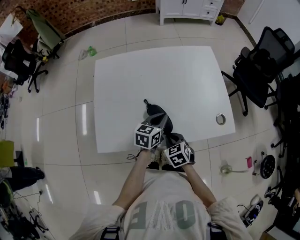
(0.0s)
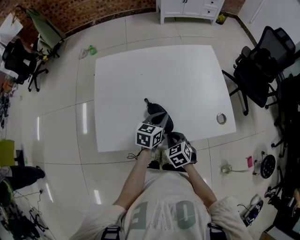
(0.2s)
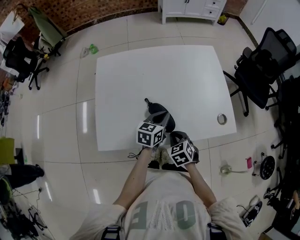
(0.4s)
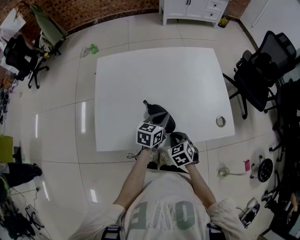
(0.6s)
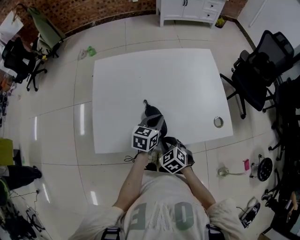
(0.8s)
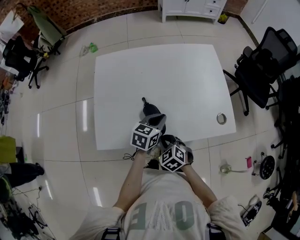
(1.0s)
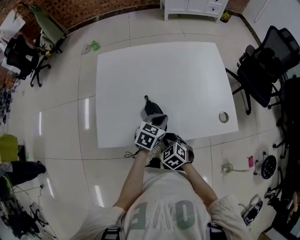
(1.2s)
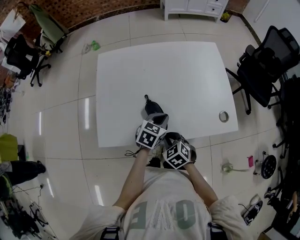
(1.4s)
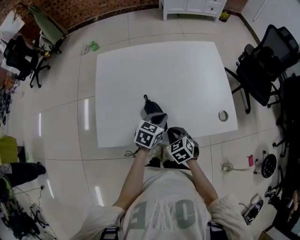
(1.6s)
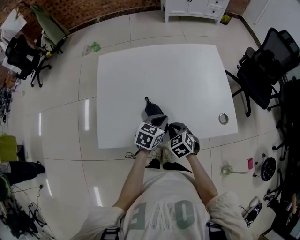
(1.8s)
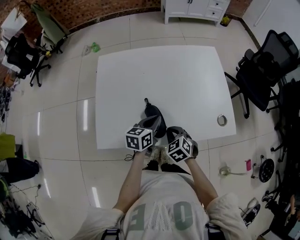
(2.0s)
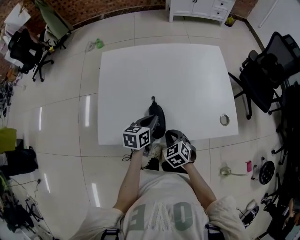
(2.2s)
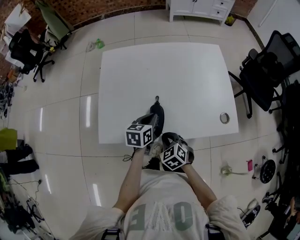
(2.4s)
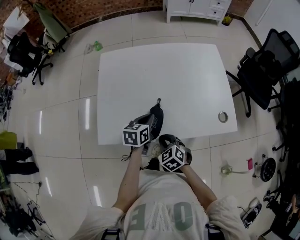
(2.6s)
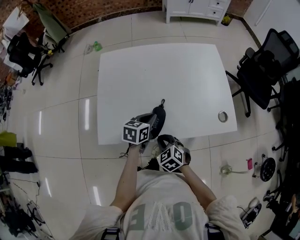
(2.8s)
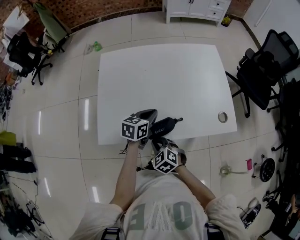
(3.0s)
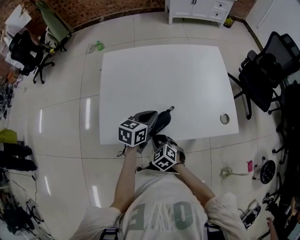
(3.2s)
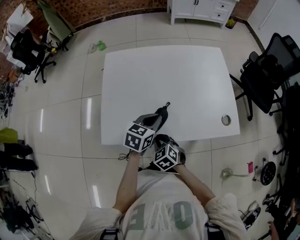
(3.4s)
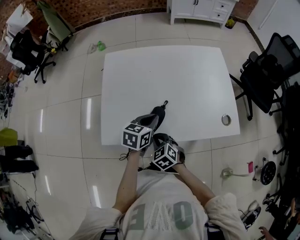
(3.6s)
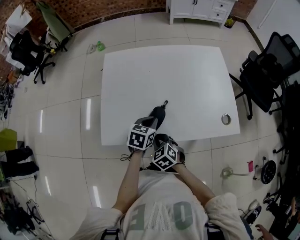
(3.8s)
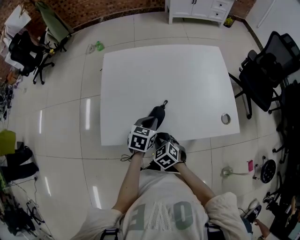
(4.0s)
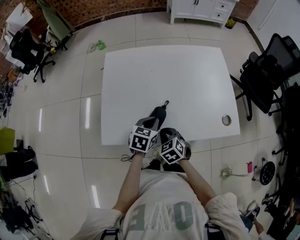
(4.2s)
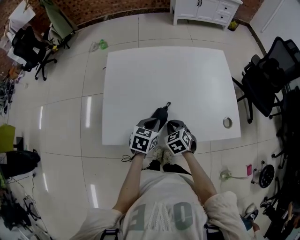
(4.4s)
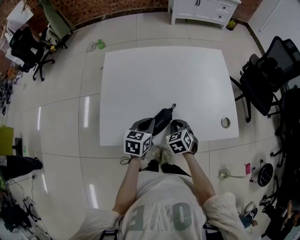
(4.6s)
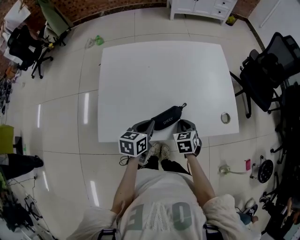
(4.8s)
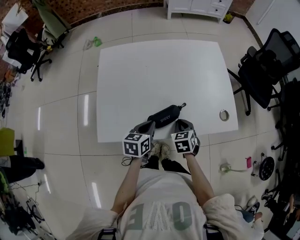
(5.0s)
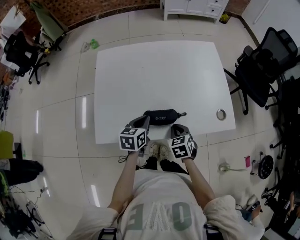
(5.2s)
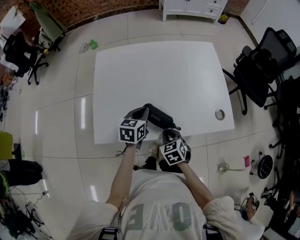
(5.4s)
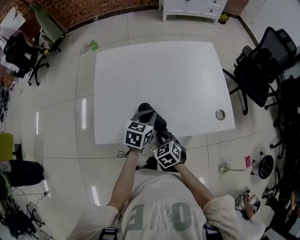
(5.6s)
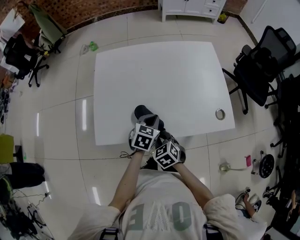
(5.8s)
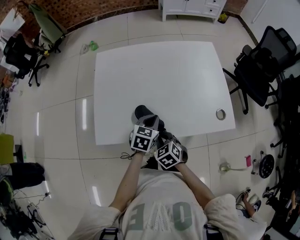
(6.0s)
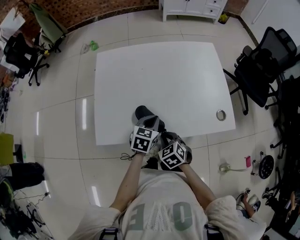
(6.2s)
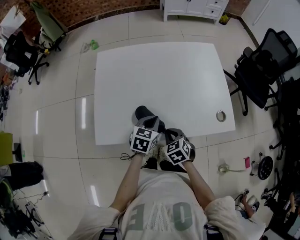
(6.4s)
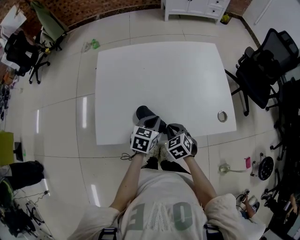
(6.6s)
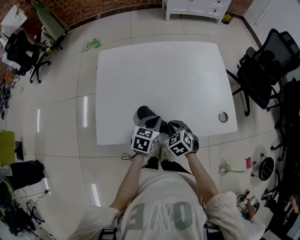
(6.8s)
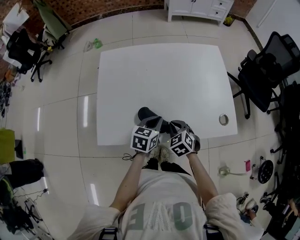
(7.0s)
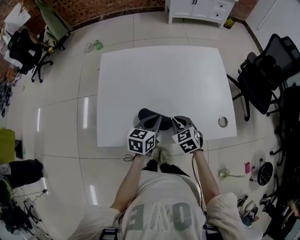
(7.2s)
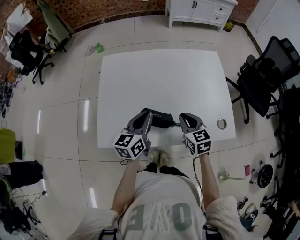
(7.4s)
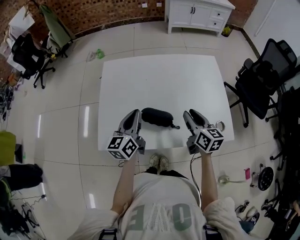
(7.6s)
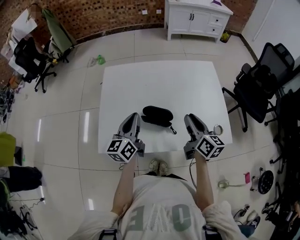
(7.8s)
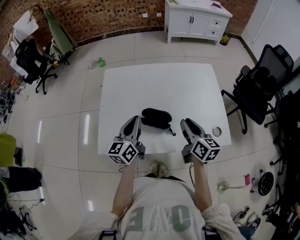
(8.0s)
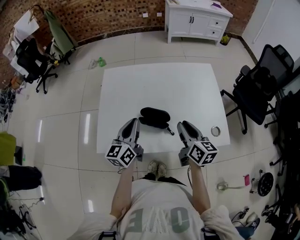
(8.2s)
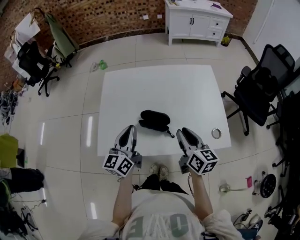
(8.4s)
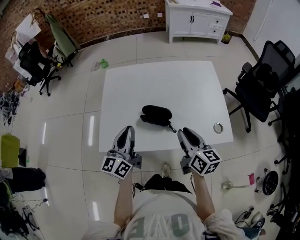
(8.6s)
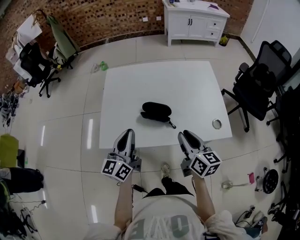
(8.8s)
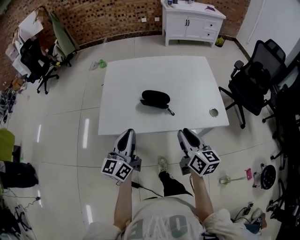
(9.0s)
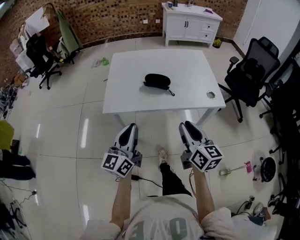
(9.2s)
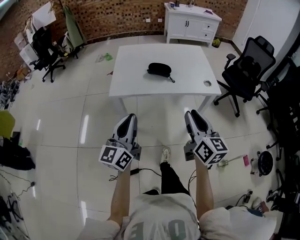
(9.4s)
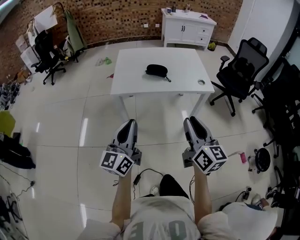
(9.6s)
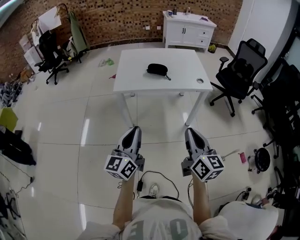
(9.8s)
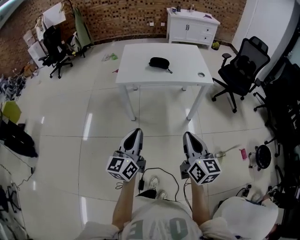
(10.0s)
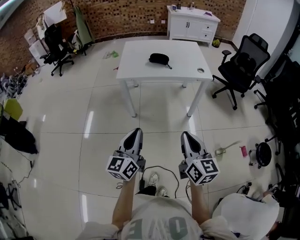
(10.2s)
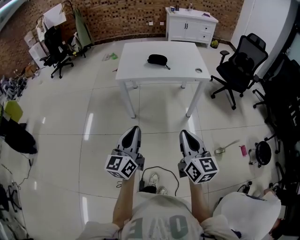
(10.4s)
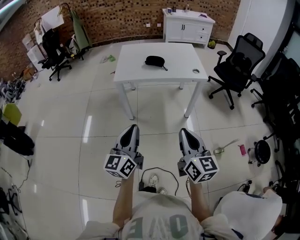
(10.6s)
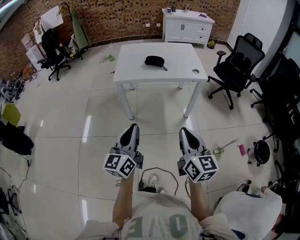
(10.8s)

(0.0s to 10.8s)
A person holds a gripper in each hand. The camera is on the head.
0.0s - 1.6s: There are only small adjustments of the grippers.
1.6s - 3.0s: The right gripper travels to the left and backward by some 10 cm. The left gripper moves to the left, roughly 5 cm.
3.0s - 4.6s: The right gripper shifts roughly 15 cm forward and to the right, and rotates about 20 degrees.
4.6s - 6.2s: The left gripper travels to the right by roughly 5 cm. Meanwhile the right gripper moves backward, approximately 10 cm, and goes to the left and returns, some 5 cm each way.
6.2s - 7.8s: The left gripper travels upward and to the left by approximately 15 cm, and points its fingers about 40 degrees further upward. The right gripper goes approximately 25 cm upward, forward and to the right, tilts its fingers about 40 degrees upward, and opens its fingers.
7.8s - 9.2s: The grippers both shift backward by about 35 cm.
9.2s - 10.8s: Both grippers move backward, roughly 40 cm. The right gripper closes up.

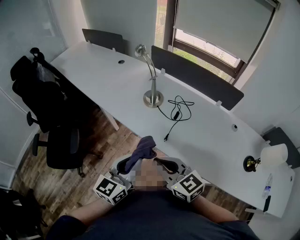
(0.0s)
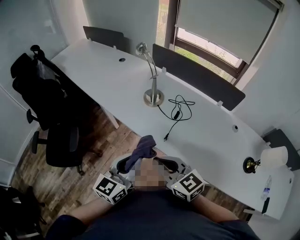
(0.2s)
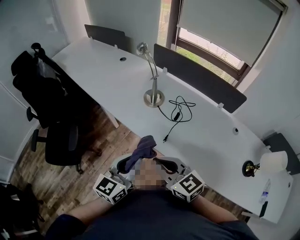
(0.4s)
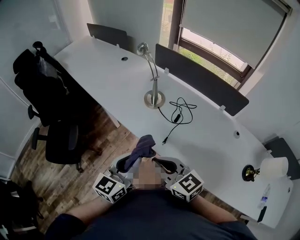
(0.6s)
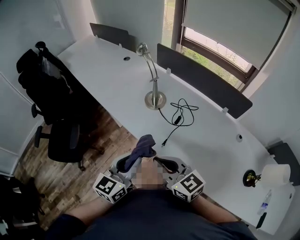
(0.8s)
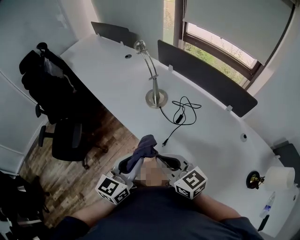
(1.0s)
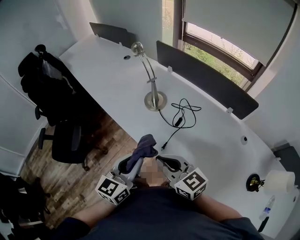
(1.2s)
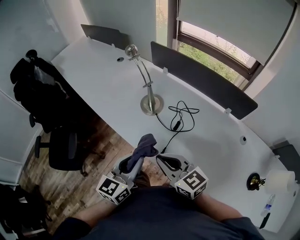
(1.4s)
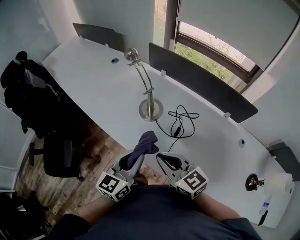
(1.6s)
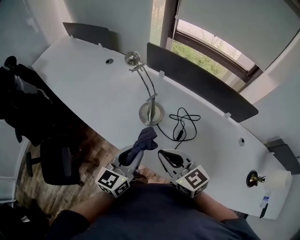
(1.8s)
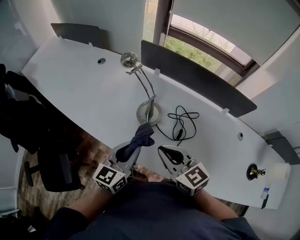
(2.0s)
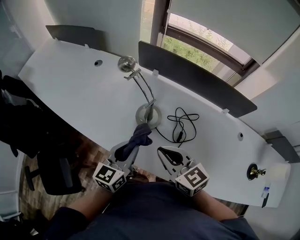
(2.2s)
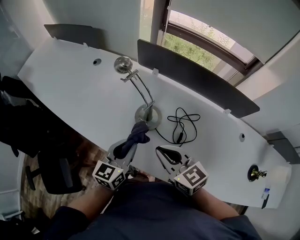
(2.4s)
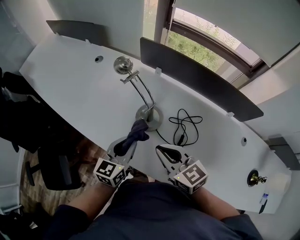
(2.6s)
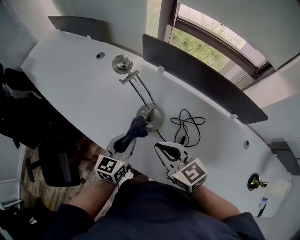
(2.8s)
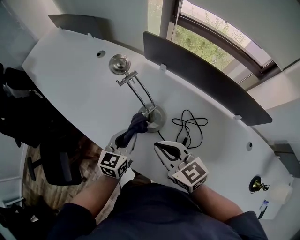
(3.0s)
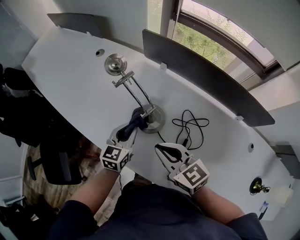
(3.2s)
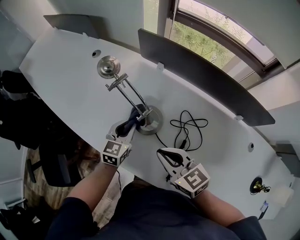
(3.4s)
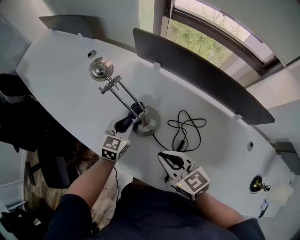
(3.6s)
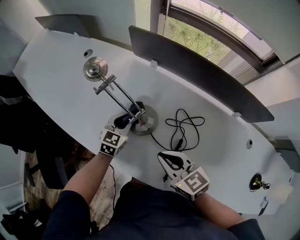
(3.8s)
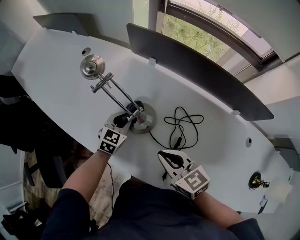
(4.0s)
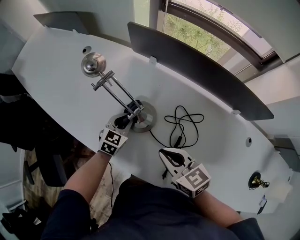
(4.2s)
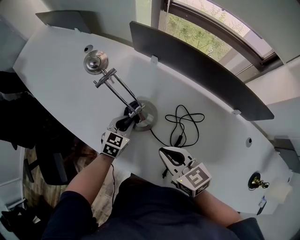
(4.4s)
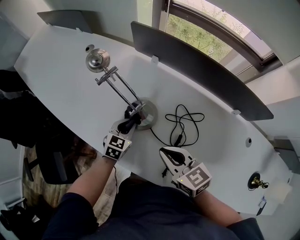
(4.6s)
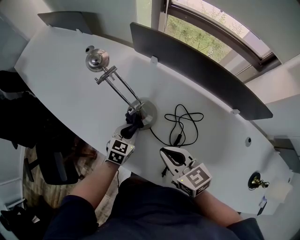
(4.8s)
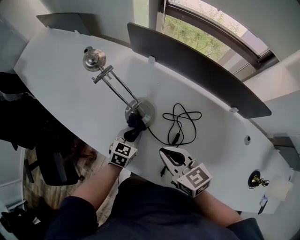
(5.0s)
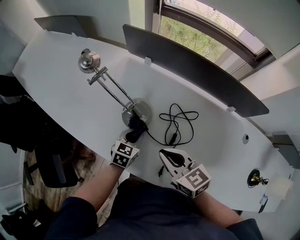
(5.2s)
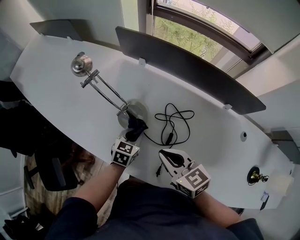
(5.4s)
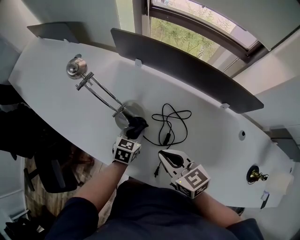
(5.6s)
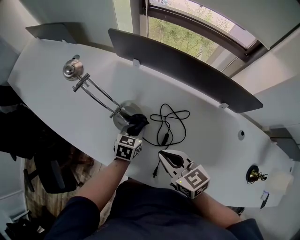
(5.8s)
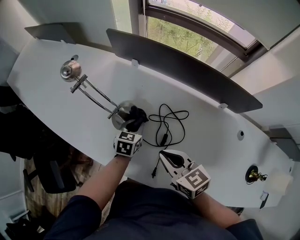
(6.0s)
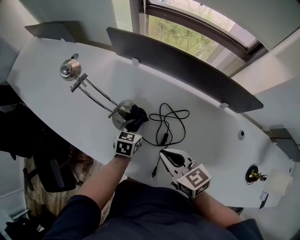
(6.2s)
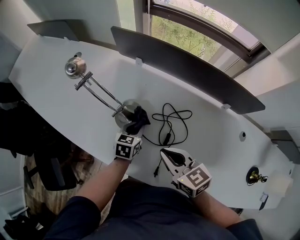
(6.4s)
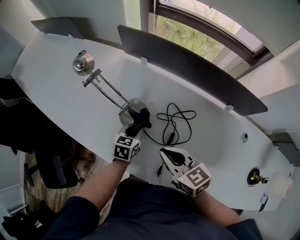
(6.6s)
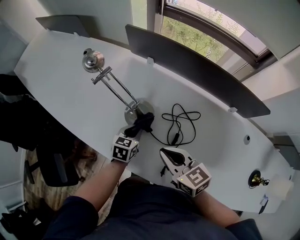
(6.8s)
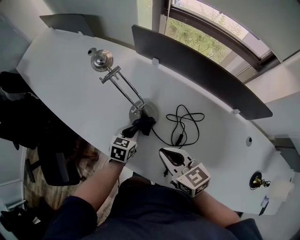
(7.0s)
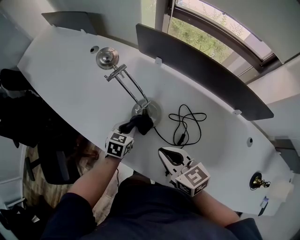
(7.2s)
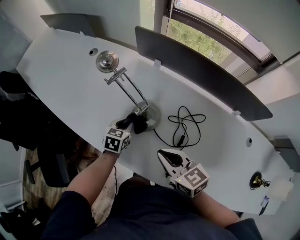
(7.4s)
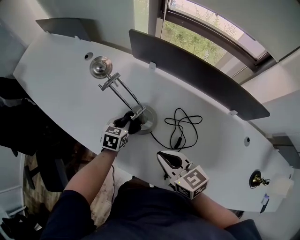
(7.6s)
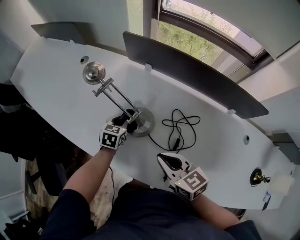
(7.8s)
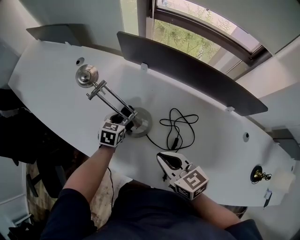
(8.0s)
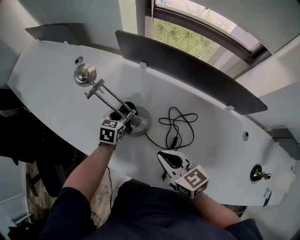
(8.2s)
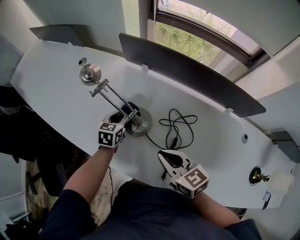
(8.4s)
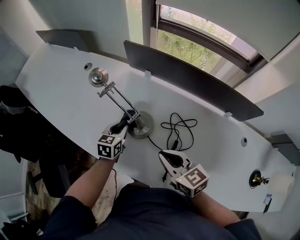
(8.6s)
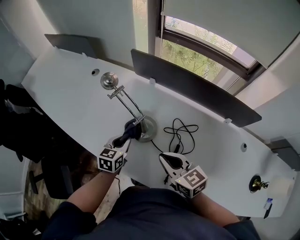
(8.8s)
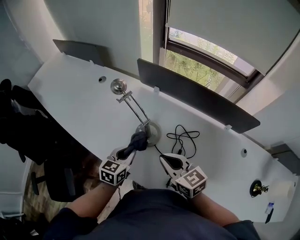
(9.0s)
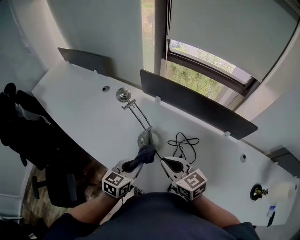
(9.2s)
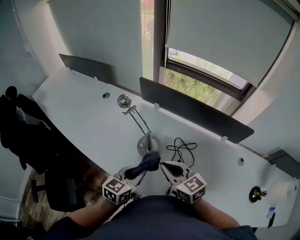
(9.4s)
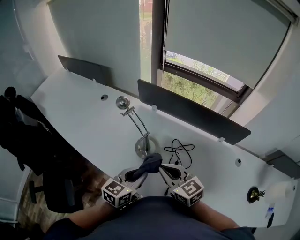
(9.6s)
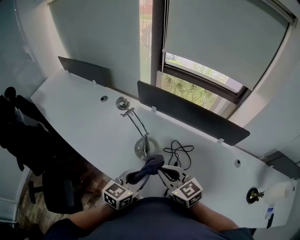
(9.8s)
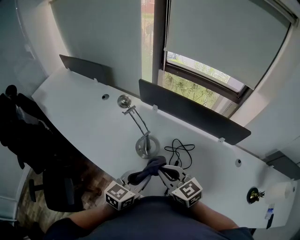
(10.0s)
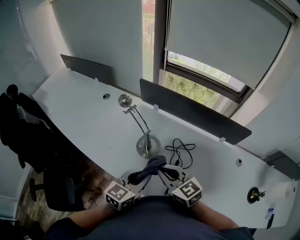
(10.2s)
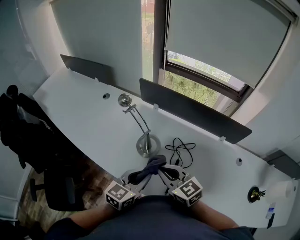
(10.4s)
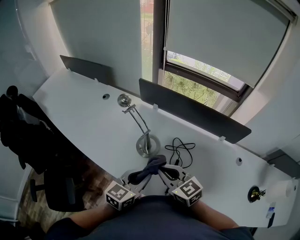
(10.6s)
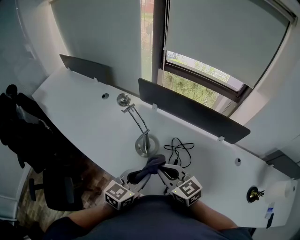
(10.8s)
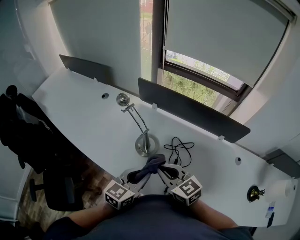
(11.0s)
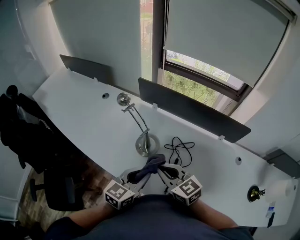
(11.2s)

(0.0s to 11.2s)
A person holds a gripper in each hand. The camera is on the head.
0.0s - 1.6s: The grippers both shift forward by approximately 20 cm.
1.6s - 3.2s: The right gripper shifts approximately 20 cm forward. The left gripper travels forward and downward by approximately 30 cm.
3.2s - 4.8s: The right gripper changes place by roughly 5 cm. Meanwhile the left gripper shifts some 10 cm downward.
4.8s - 6.4s: The left gripper travels to the right by approximately 10 cm; the right gripper shifts some 5 cm to the right.
6.4s - 8.0s: The right gripper heads to the left, covering roughly 5 cm, while the left gripper goes about 15 cm to the left and forward.
8.0s - 9.6s: The left gripper shifts approximately 30 cm backward and upward, and swivels roughly 30 degrees; the right gripper is displaced upward by approximately 10 cm.
9.6s - 11.2s: The grippers move only a little.

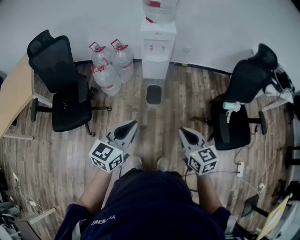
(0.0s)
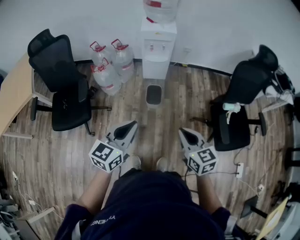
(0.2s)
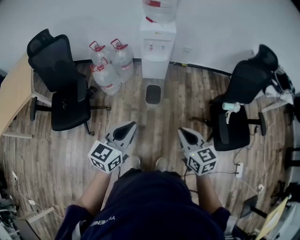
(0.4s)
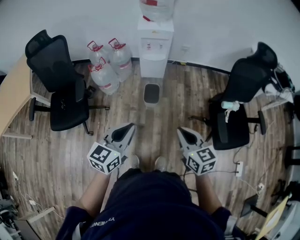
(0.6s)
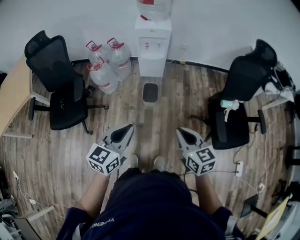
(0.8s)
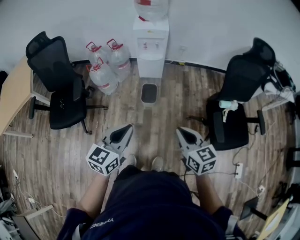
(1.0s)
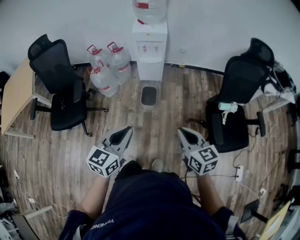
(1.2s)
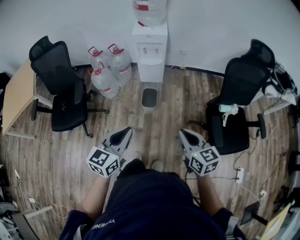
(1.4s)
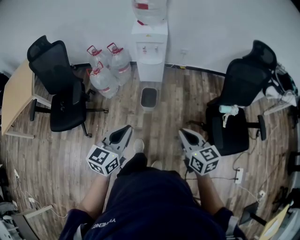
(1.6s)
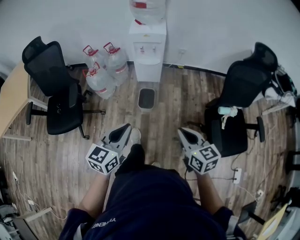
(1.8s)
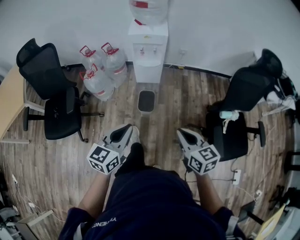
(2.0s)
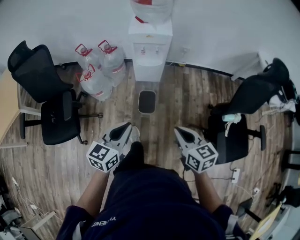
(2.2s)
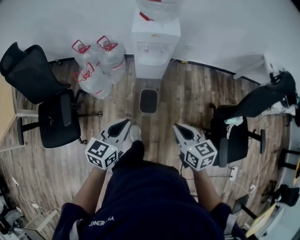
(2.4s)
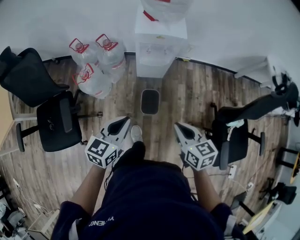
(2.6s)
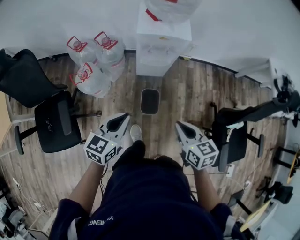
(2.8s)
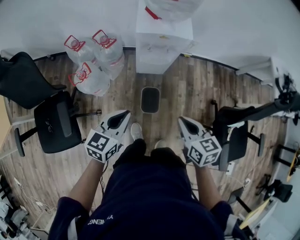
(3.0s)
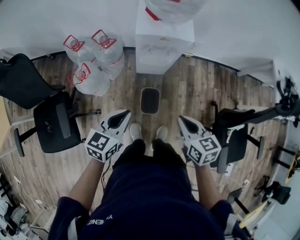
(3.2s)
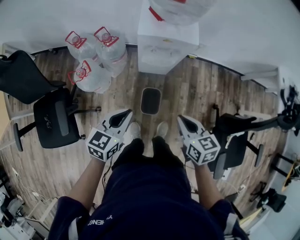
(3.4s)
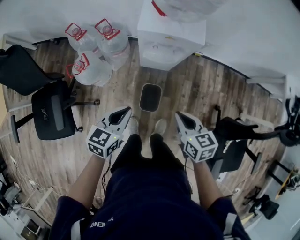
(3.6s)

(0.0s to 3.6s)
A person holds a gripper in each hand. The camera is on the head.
0.0s - 1.8s: The right gripper moves to the right and forward, roughly 10 cm. The left gripper travels to the right by roughly 5 cm.
1.8s - 3.6s: The two grippers travel together, forward, about 40 cm. The left gripper moves downward, roughly 15 cm.
